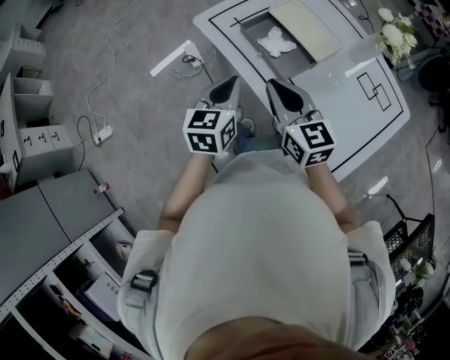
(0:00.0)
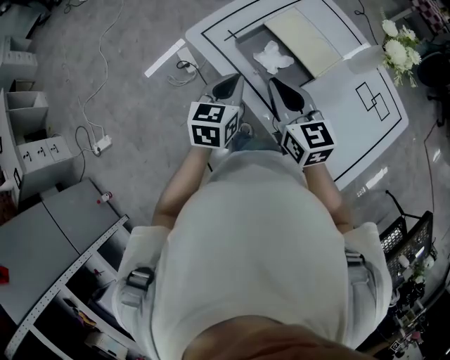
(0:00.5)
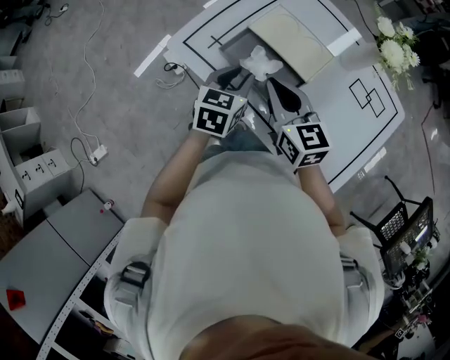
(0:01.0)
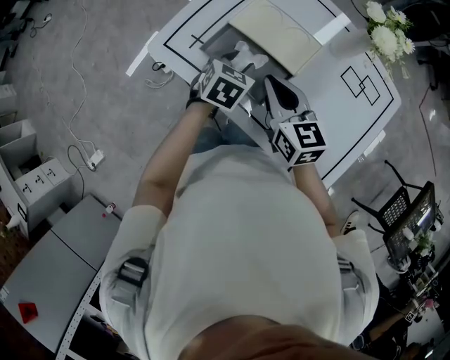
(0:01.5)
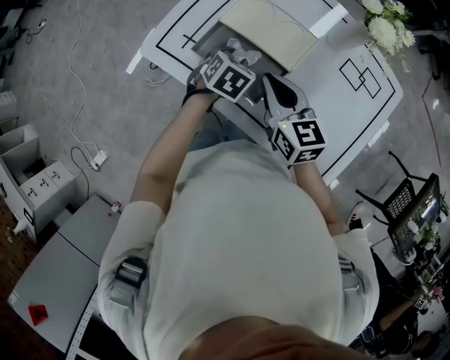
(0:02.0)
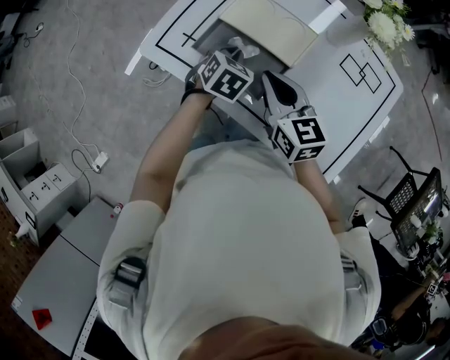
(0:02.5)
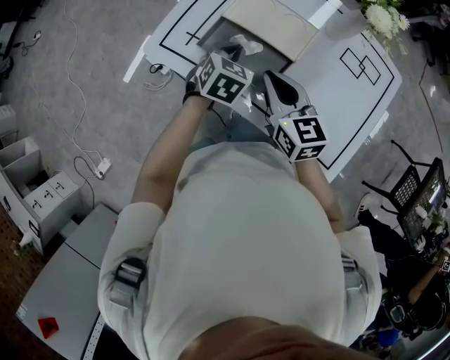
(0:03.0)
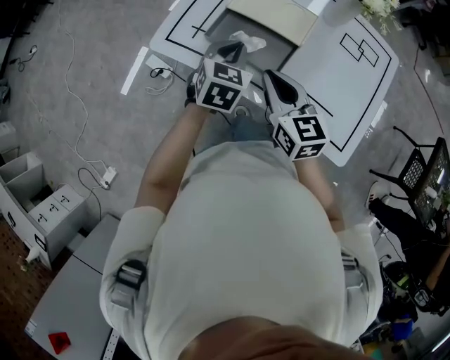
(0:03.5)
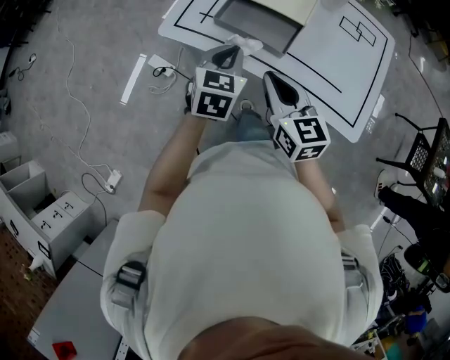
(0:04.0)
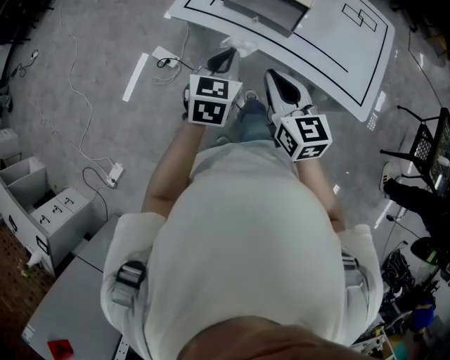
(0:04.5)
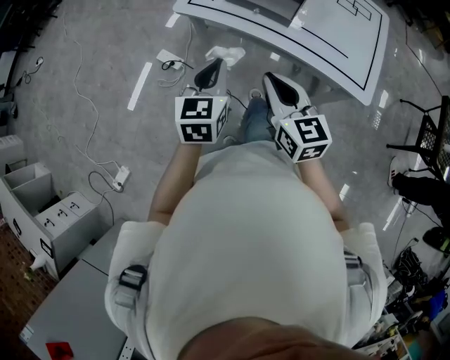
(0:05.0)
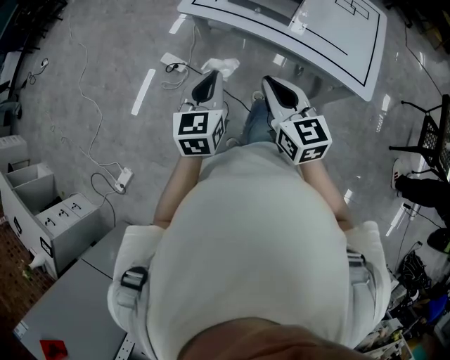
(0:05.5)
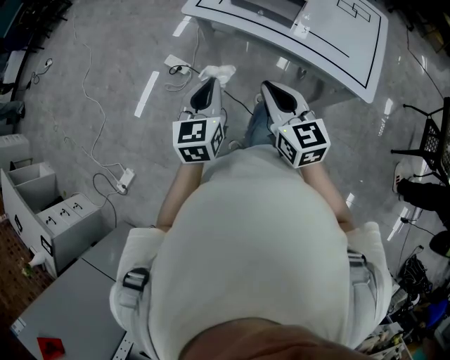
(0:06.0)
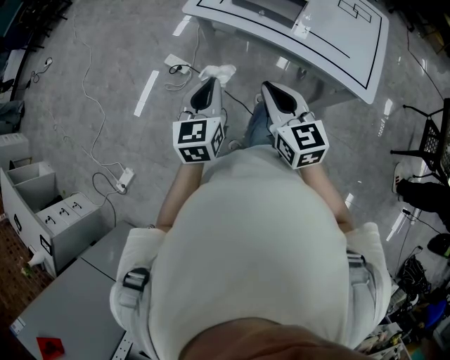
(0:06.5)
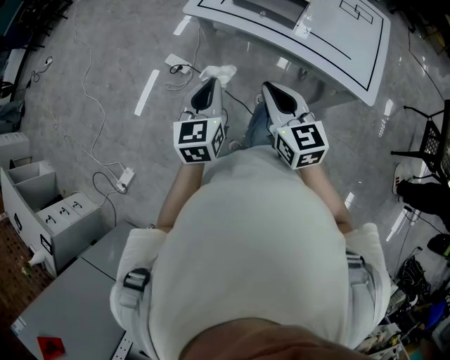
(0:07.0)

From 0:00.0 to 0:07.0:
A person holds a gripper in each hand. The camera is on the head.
From 0:00.0 to 0:02.0: The right gripper travels forward and to the right by approximately 15 cm, and turns by approximately 20 degrees; the left gripper goes roughly 25 cm forward, downward and to the right, angles its fingers downward, by about 40 degrees, and opens up.
From 0:02.0 to 0:03.5: The left gripper goes some 10 cm upward, changes its angle by roughly 20 degrees, and closes its fingers, while the right gripper goes some 5 cm backward.
From 0:03.5 to 0:05.0: The right gripper goes about 20 cm backward. The left gripper travels backward and to the left by about 30 cm.
From 0:05.0 to 0:07.0: The left gripper travels backward by approximately 5 cm.

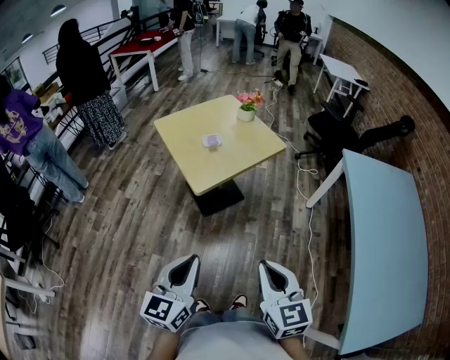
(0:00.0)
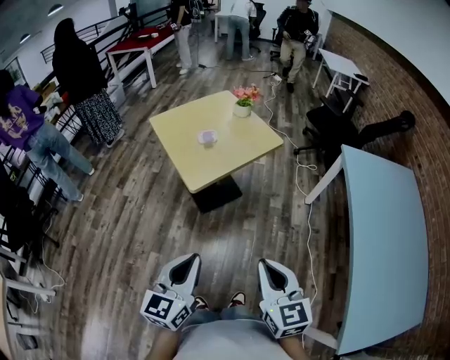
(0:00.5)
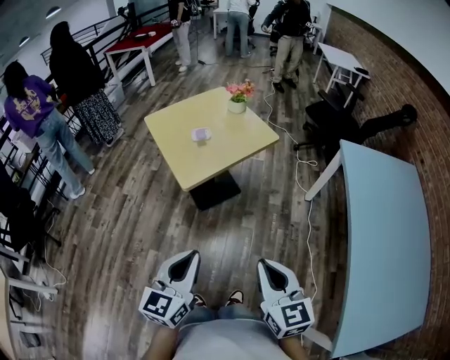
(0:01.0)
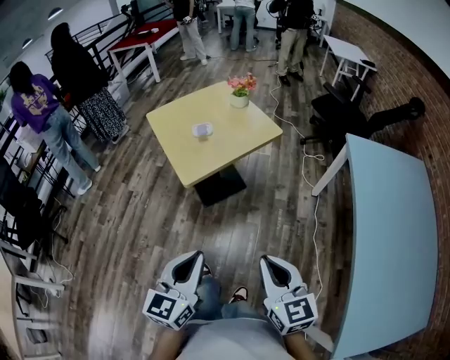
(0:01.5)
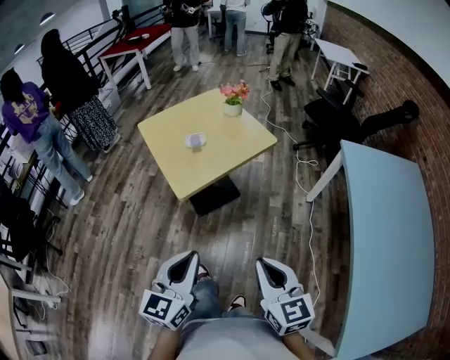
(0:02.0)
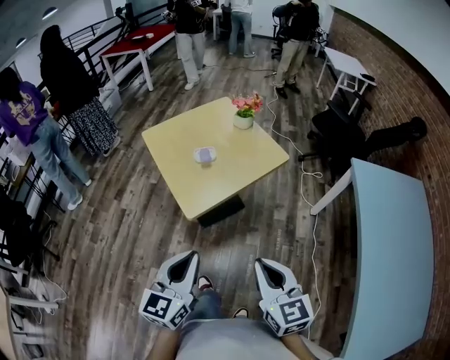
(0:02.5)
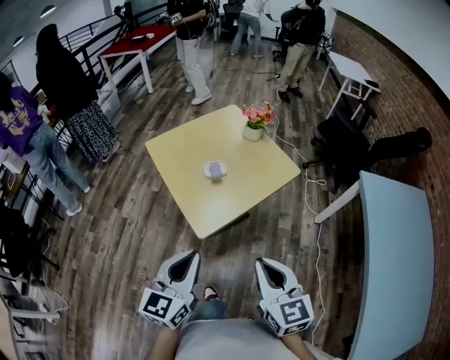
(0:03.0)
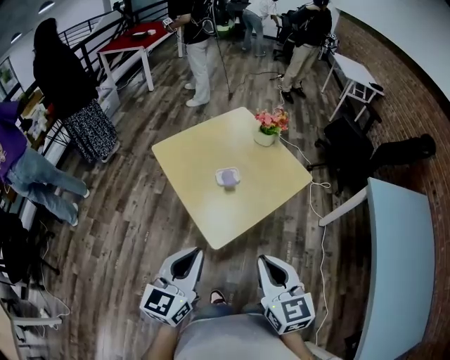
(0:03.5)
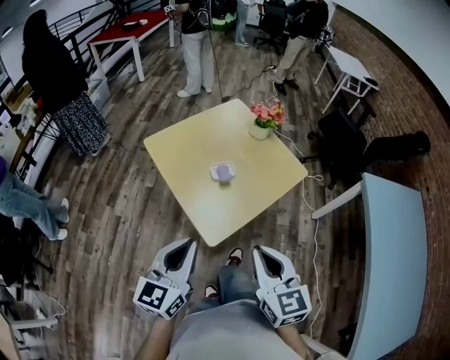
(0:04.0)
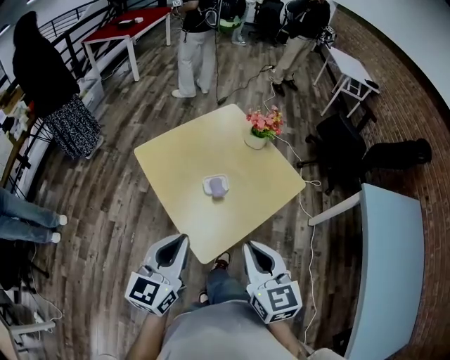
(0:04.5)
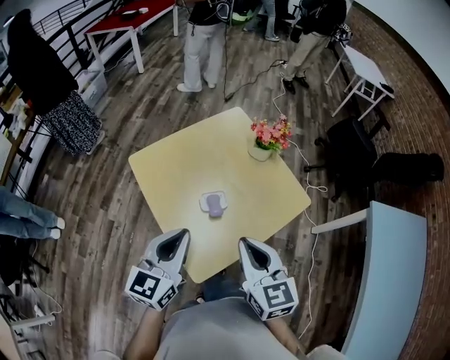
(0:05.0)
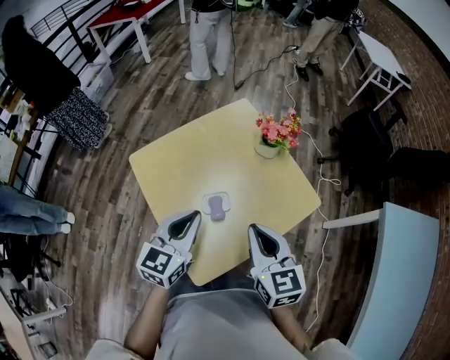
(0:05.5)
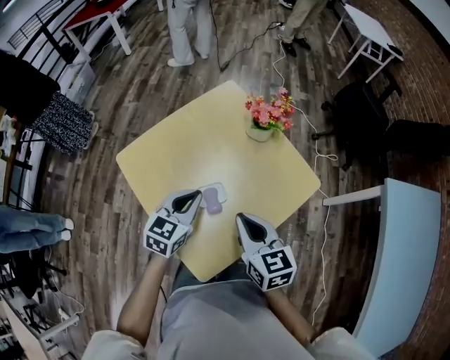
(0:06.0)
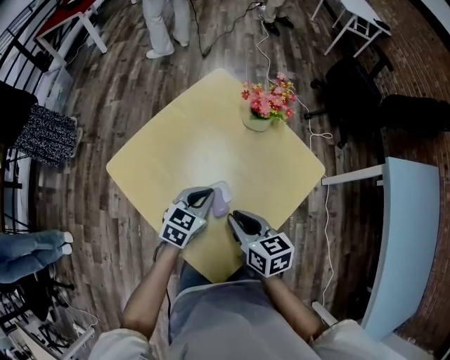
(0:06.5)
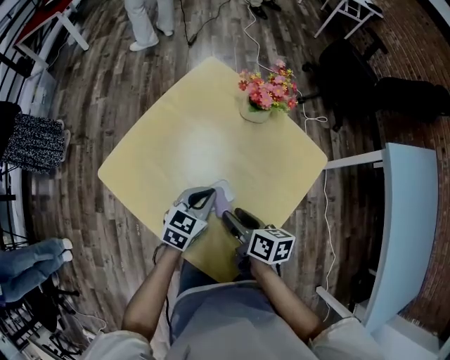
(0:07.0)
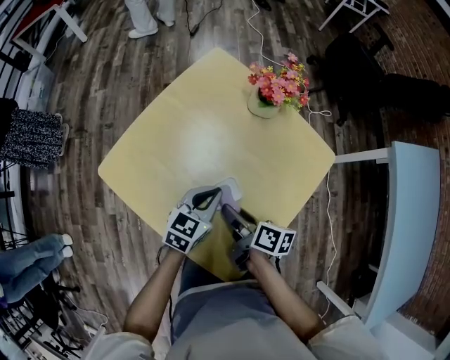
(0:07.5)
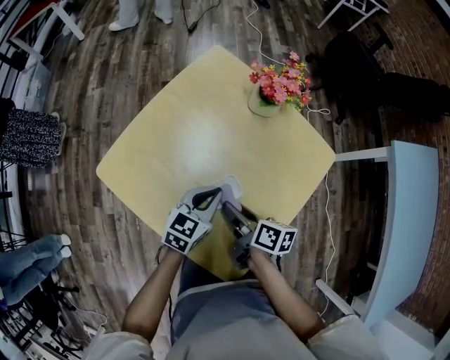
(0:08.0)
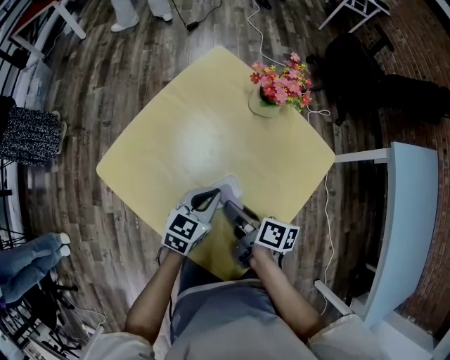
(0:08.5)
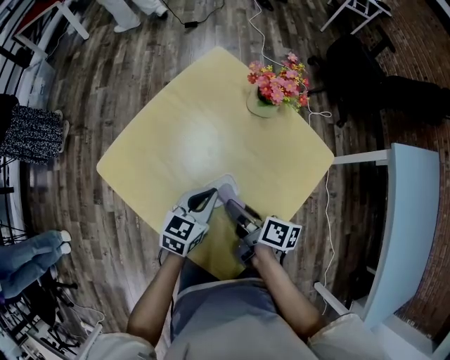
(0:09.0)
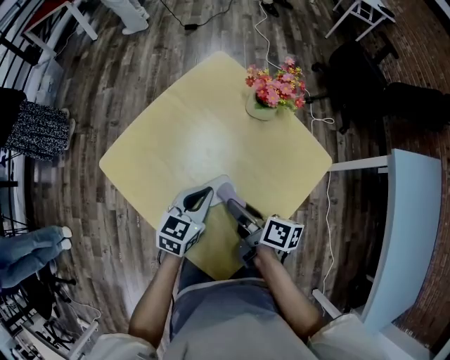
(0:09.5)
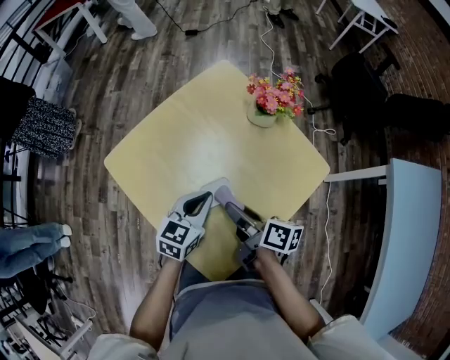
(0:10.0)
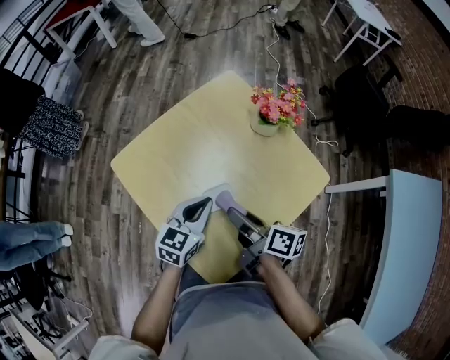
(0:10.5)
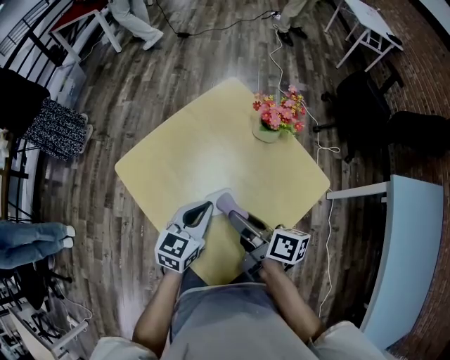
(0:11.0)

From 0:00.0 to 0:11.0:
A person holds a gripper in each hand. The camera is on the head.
From 0:00.0 to 0:02.0: The two grippers go some 10 cm to the right and forward.
From 0:02.0 to 0:03.5: Both grippers move forward and to the left, approximately 30 cm.
From 0:03.5 to 0:05.5: Both grippers move forward, some 30 cm.
From 0:05.5 to 0:07.5: The right gripper shifts roughly 25 cm downward and to the left, rotates around the line of its fingers by some 60 degrees, clockwise from behind, and opens its fingers, while the left gripper shifts roughly 20 cm downward, and rotates some 30 degrees.
From 0:07.5 to 0:09.0: The grippers make only small movements.
From 0:09.0 to 0:11.0: Both grippers move upward, approximately 10 cm.

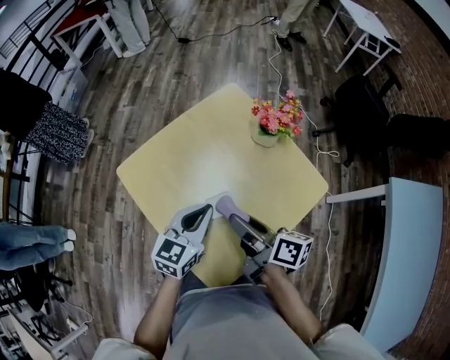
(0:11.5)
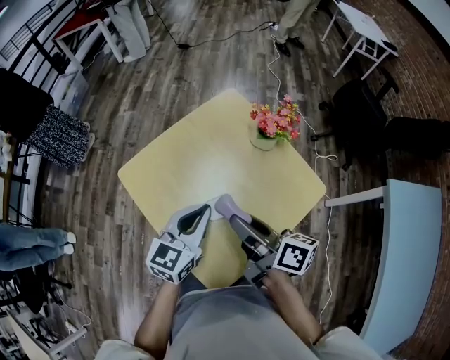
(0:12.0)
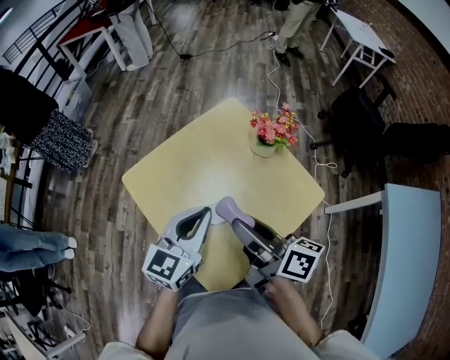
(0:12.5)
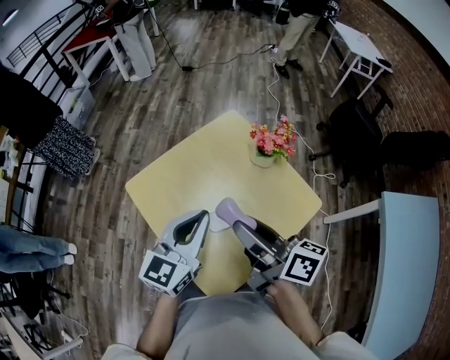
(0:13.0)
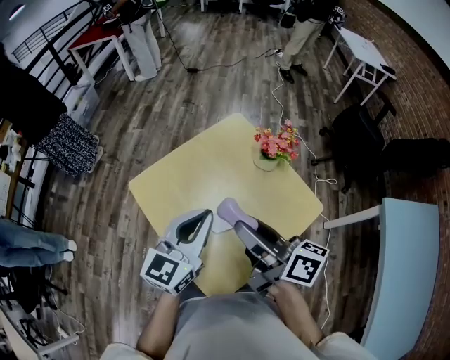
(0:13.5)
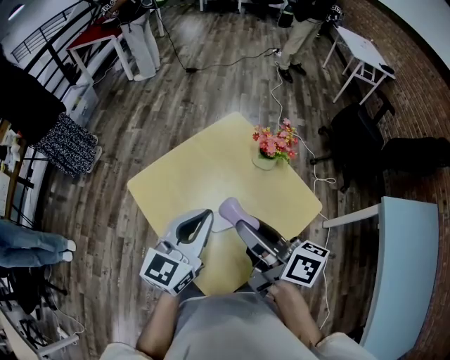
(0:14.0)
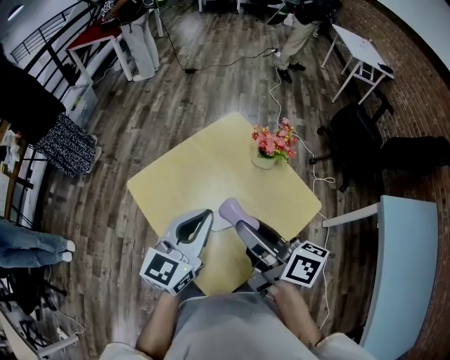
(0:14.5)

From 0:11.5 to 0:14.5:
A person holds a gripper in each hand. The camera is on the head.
From 0:11.5 to 0:13.0: The two grippers go approximately 15 cm upward.
From 0:13.0 to 0:14.5: The two grippers keep their place.

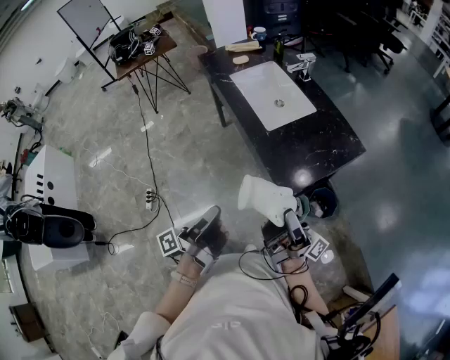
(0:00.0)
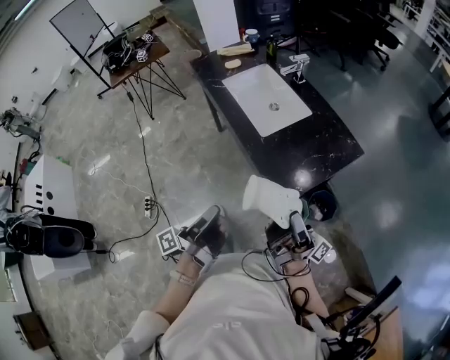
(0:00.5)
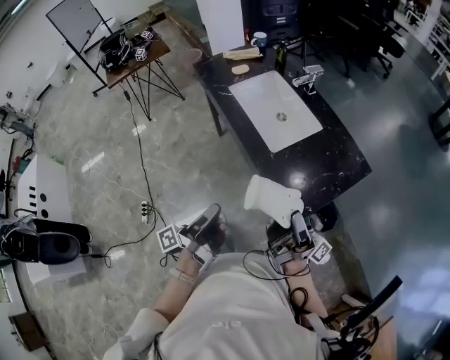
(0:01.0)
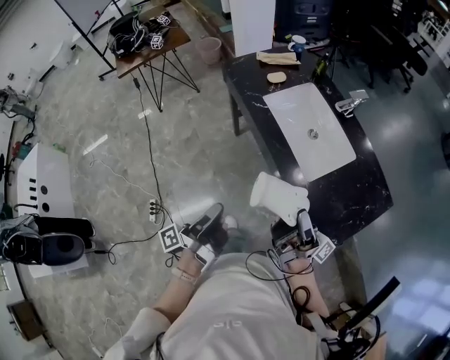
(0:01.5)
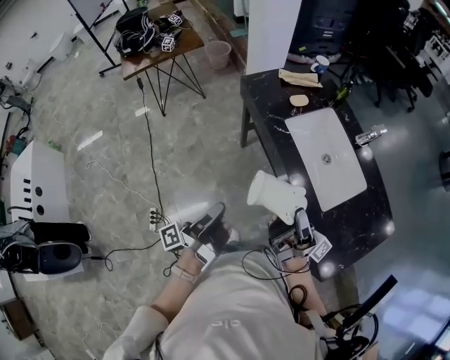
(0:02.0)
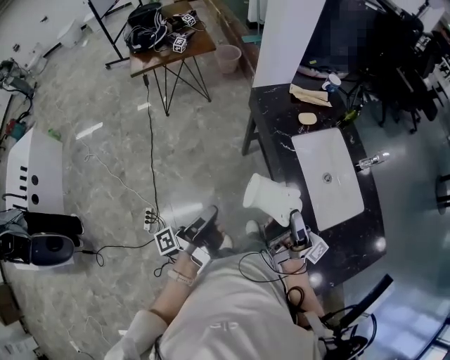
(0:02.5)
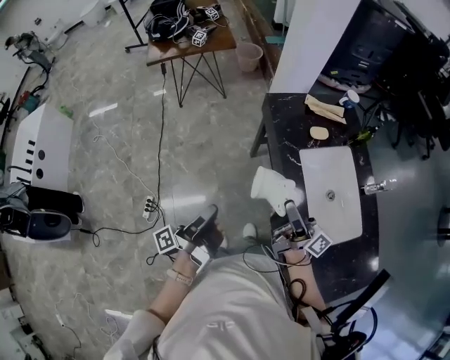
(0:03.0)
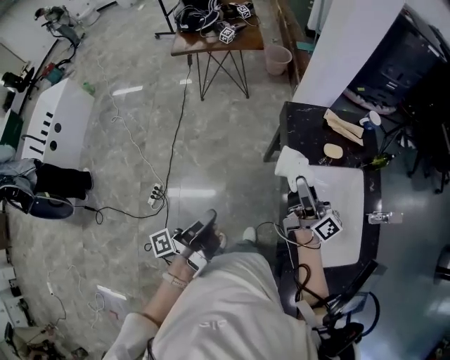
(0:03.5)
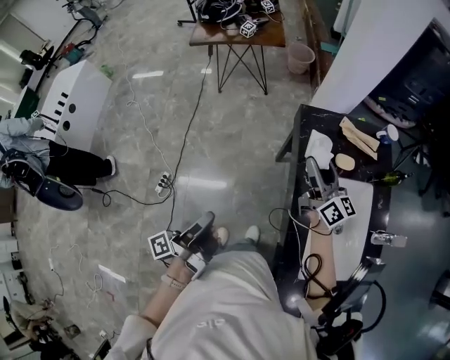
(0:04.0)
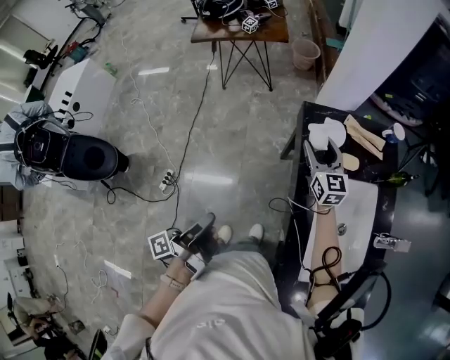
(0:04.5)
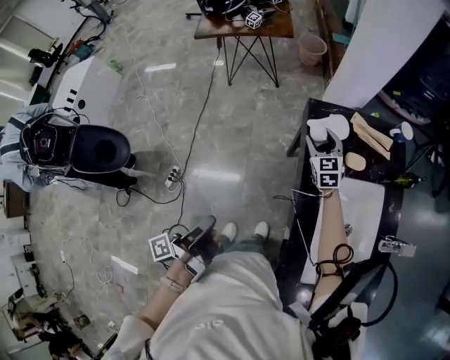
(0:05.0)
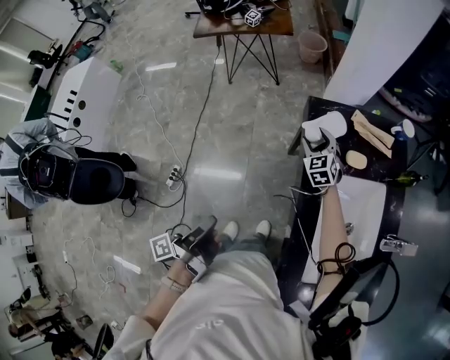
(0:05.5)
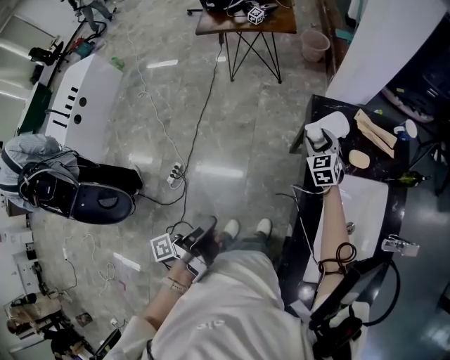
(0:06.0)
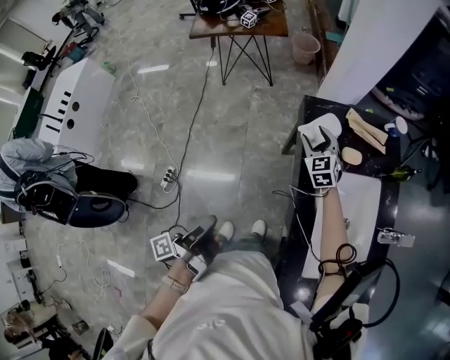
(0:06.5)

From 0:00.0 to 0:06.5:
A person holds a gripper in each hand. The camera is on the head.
From 0:00.0 to 0:02.0: The right gripper ends up approximately 50 cm from where it was.
From 0:02.0 to 0:04.5: The right gripper changes place by approximately 50 cm, and twists some 70 degrees counterclockwise, seen from behind.
From 0:04.5 to 0:06.5: The right gripper shifts approximately 5 cm downward, and rotates approximately 30 degrees.
